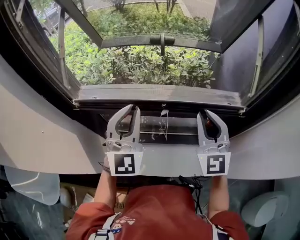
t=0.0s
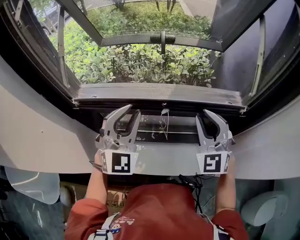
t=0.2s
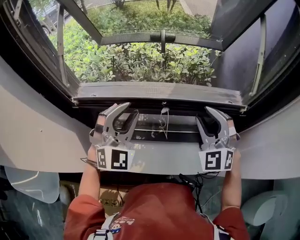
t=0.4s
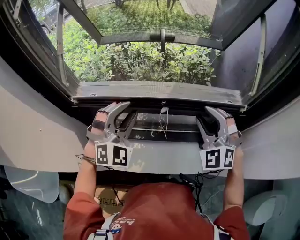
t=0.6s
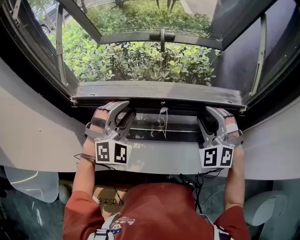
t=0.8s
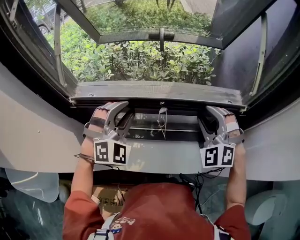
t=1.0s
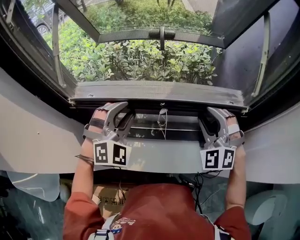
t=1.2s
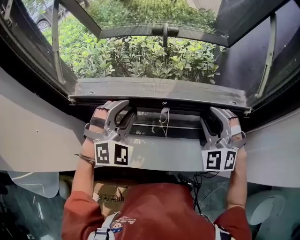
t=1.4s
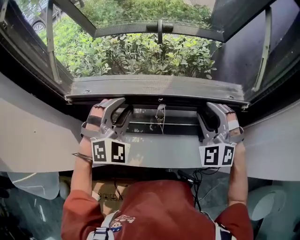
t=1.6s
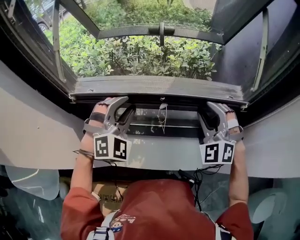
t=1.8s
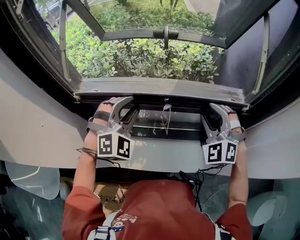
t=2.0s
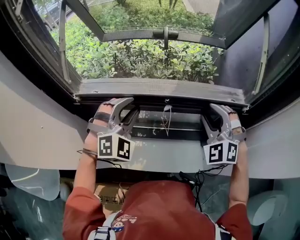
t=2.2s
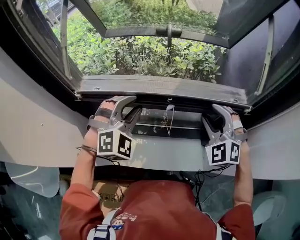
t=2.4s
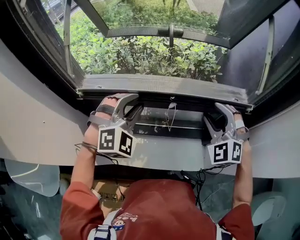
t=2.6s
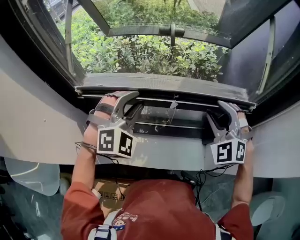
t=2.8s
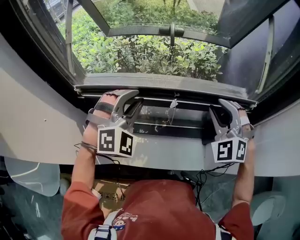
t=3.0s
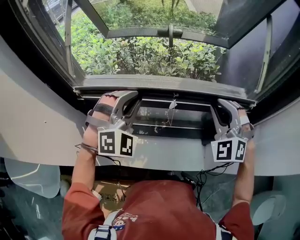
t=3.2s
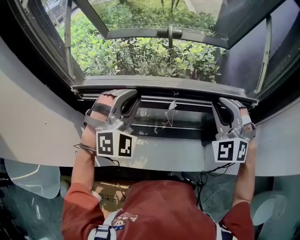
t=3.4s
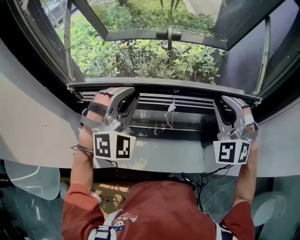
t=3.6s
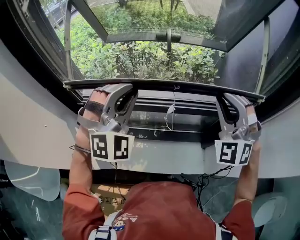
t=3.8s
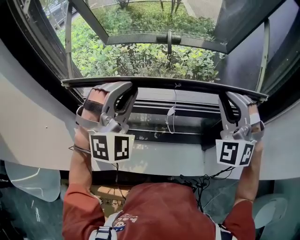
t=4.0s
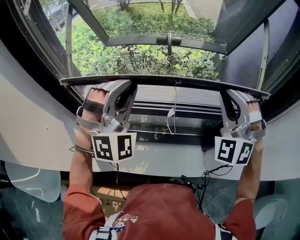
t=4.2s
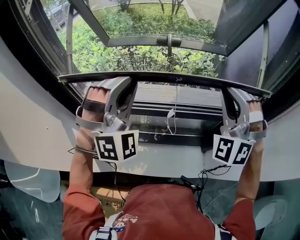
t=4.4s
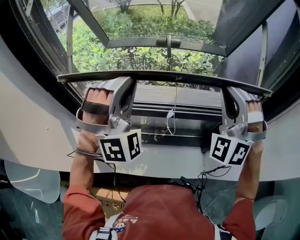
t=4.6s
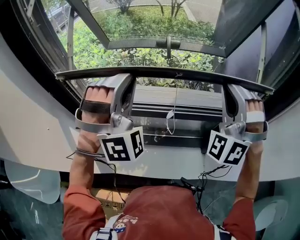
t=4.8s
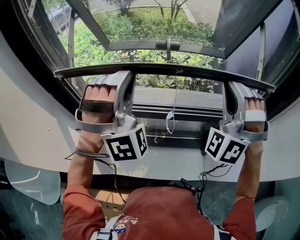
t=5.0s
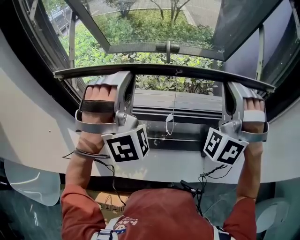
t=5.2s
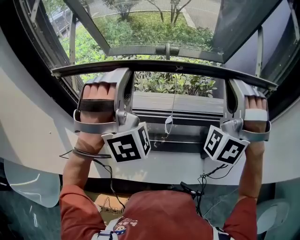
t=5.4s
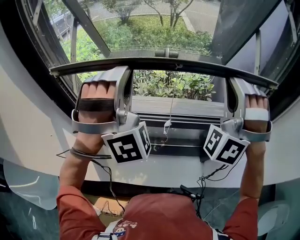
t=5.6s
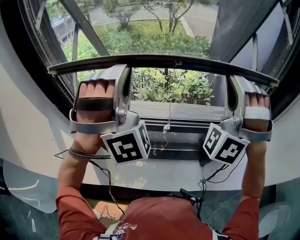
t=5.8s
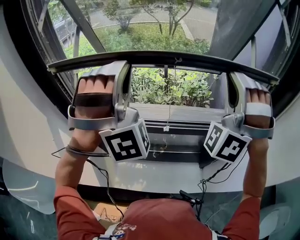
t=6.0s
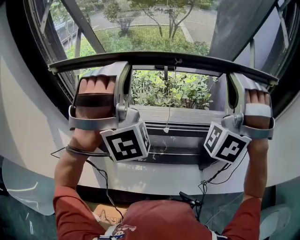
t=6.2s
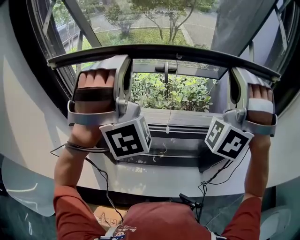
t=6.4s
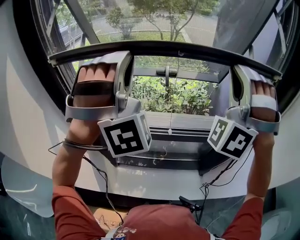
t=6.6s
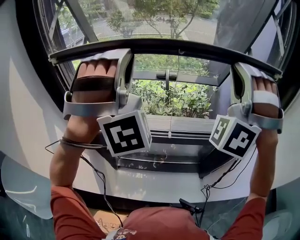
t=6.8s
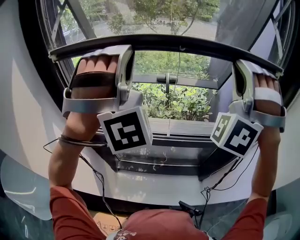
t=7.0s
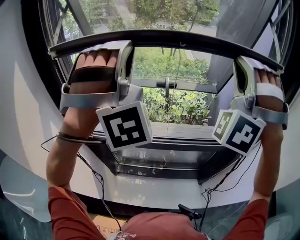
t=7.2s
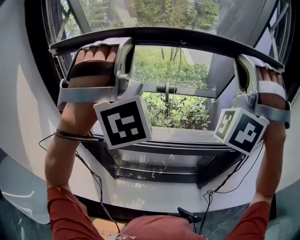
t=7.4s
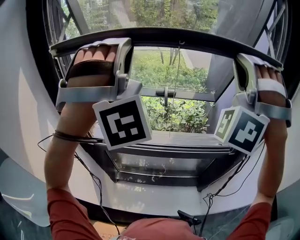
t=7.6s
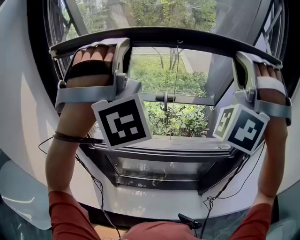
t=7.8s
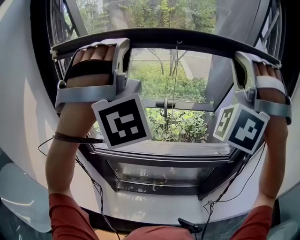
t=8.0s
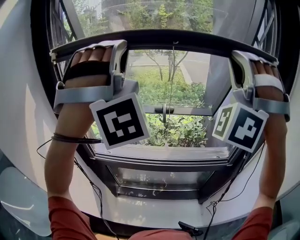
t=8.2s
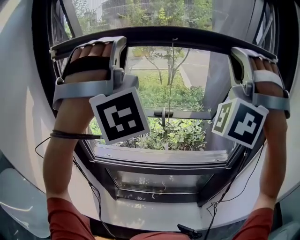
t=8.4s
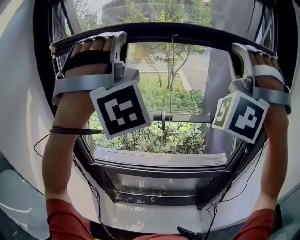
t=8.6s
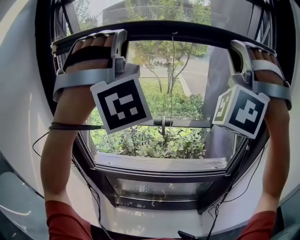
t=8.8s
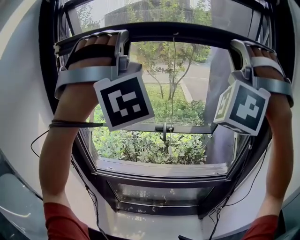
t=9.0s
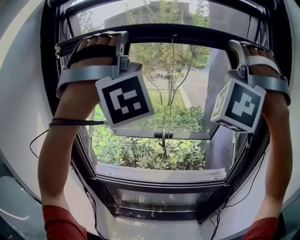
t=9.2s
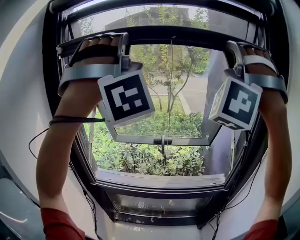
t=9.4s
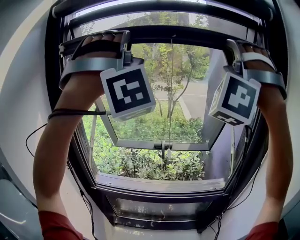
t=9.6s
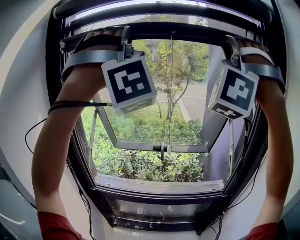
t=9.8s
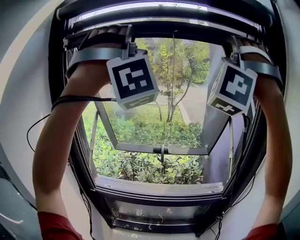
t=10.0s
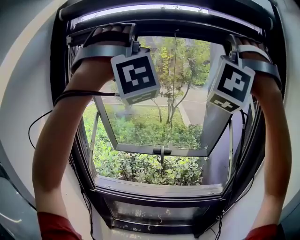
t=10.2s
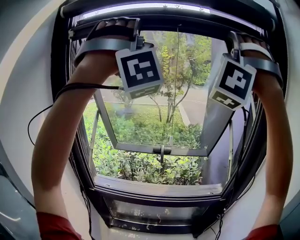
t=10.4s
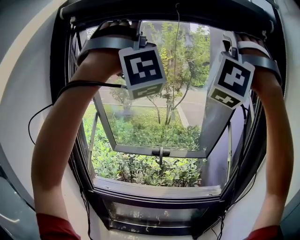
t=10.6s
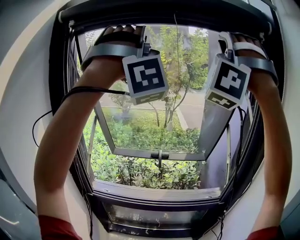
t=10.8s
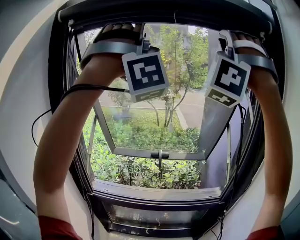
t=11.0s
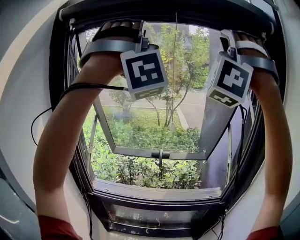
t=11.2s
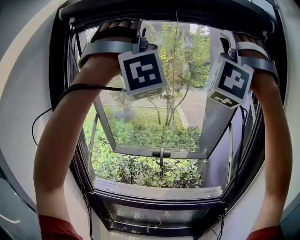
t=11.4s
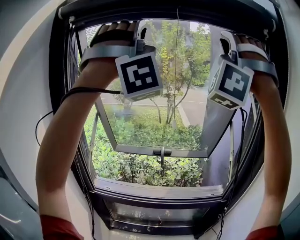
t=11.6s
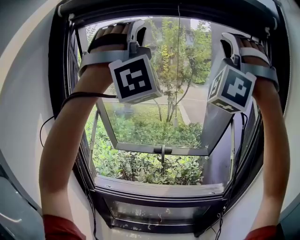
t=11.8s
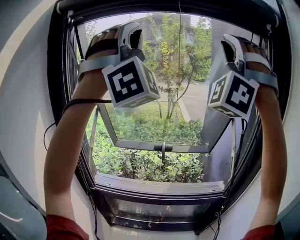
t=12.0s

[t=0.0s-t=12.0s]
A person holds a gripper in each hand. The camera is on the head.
t=0.0s to t=1.6s: Both grippers move downward, approximately 5 cm. The right gripper turns by about 40 degrees, and opens. The left gripper rotates some 40 degrees, and opens.
t=1.6s to t=3.0s: The grippers move only a little.
t=3.0s to t=4.4s: Both grippers travel together upward, roughly 10 cm. The left gripper changes its angle by approximately 20 degrees; the right gripper swivels approximately 20 degrees, and closes.
t=4.4s to t=6.0s: The grippers both shift upward by approximately 10 cm. The left gripper swivels about 30 degrees. Meanwhile the right gripper rotates about 30 degrees.
t=6.0s to t=7.6s: Both grippers move upward, some 15 cm.
t=7.6s to t=9.0s: Both grippers move upward, approximately 15 cm.
t=9.0s to t=10.4s: Both grippers move upward, about 10 cm.
t=10.4s to t=12.0s: The left gripper changes its angle by approximately 30 degrees.

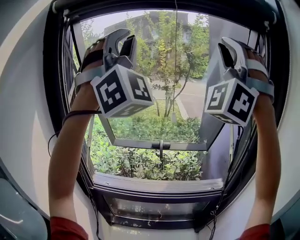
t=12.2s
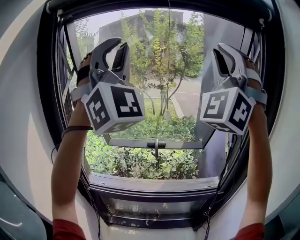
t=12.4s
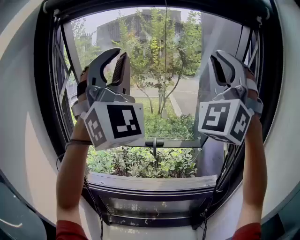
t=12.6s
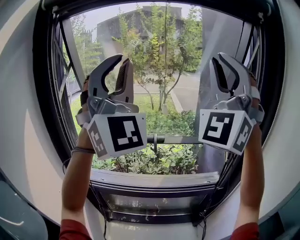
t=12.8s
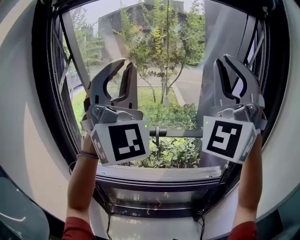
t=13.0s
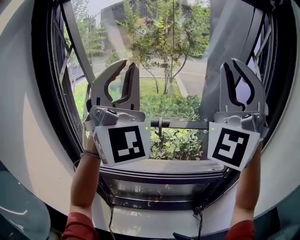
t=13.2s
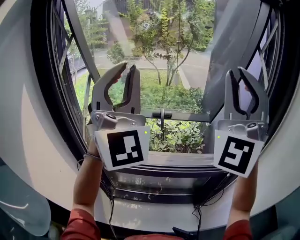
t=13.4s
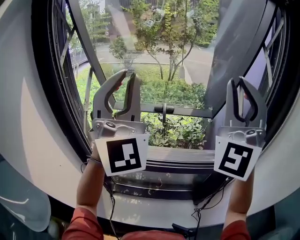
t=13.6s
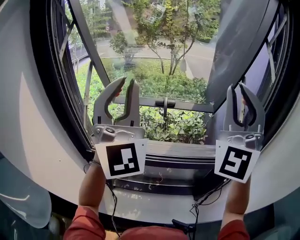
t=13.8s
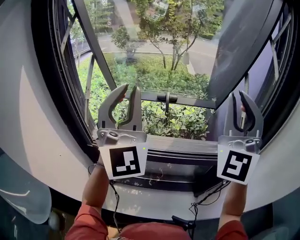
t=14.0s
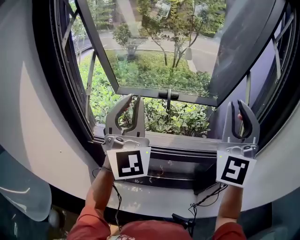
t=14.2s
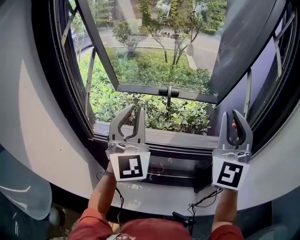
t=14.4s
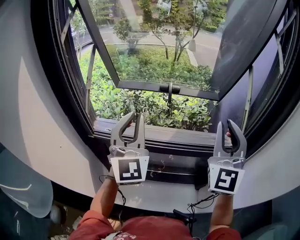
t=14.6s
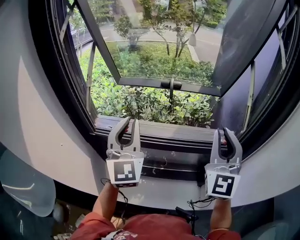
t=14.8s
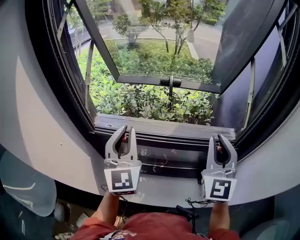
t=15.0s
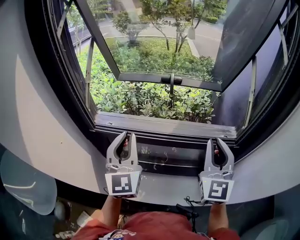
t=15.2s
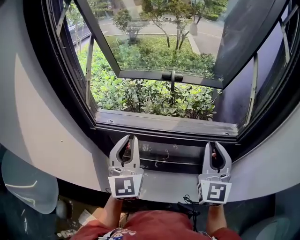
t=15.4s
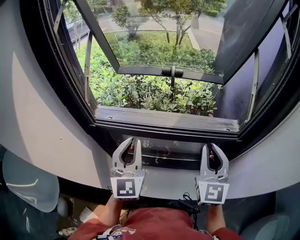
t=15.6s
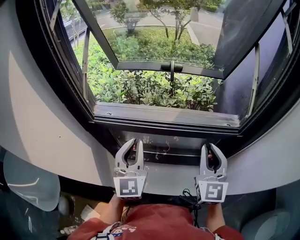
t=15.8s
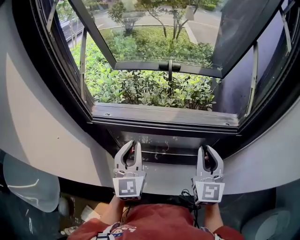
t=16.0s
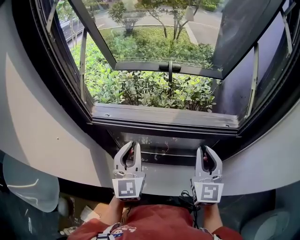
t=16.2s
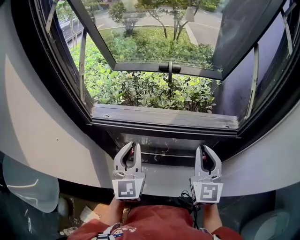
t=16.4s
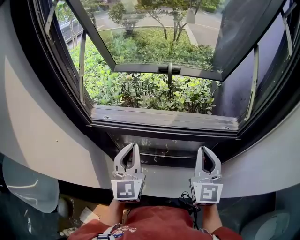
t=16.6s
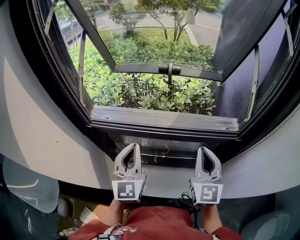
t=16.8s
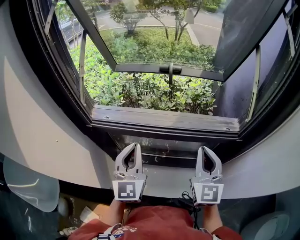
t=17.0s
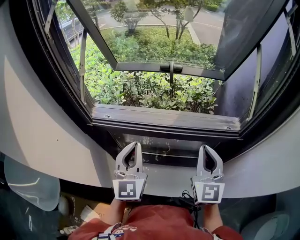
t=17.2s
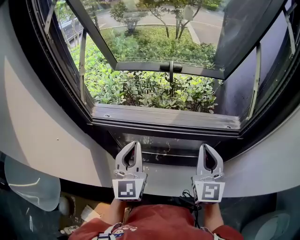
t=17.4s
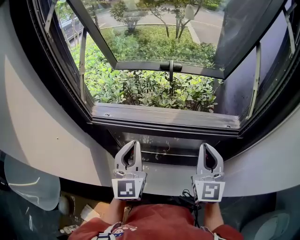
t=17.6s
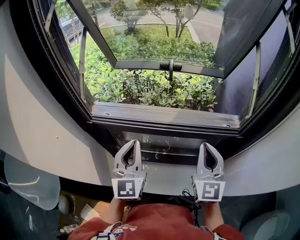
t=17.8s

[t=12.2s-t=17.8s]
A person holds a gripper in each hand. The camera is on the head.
t=12.2s to t=13.6s: Both grippers travel together downward, about 20 cm. The right gripper rotates around the line of its fingers by roughly 40 degrees, clockwise from behind. The left gripper rotates approximately 40 degrees.
t=13.6s to t=15.0s: The grippers both shift downward by about 25 cm. The left gripper swivels some 40 degrees. The right gripper rotates roughly 40 degrees.
t=15.0s to t=16.4s: The two grippers go roughly 10 cm downward.
t=16.4s to t=17.8s: Both grippers stay put.

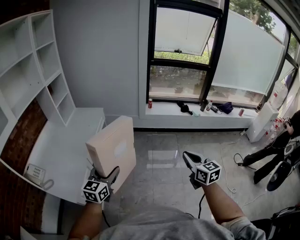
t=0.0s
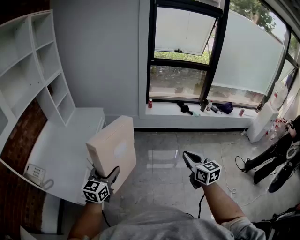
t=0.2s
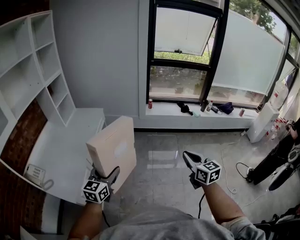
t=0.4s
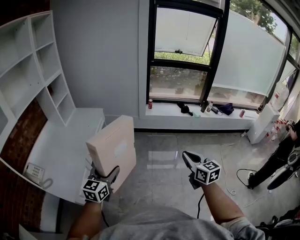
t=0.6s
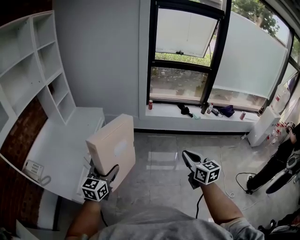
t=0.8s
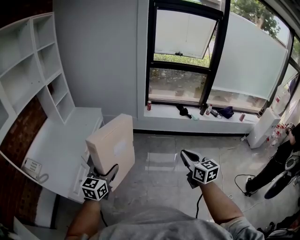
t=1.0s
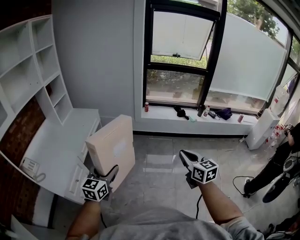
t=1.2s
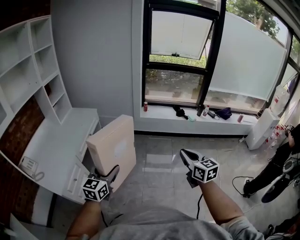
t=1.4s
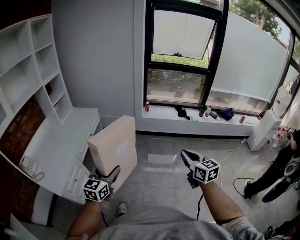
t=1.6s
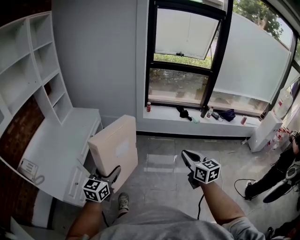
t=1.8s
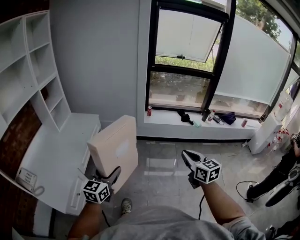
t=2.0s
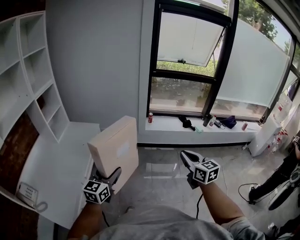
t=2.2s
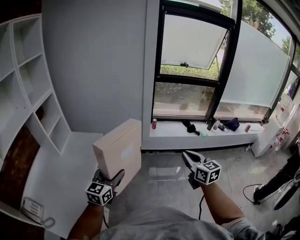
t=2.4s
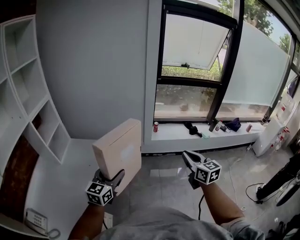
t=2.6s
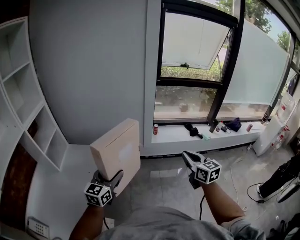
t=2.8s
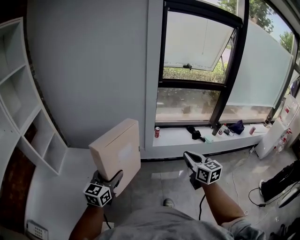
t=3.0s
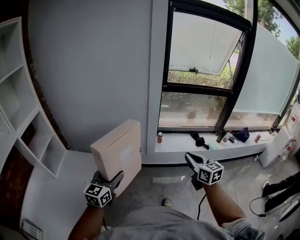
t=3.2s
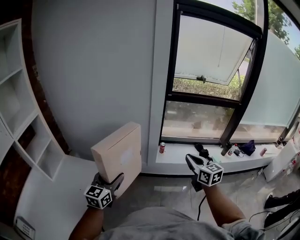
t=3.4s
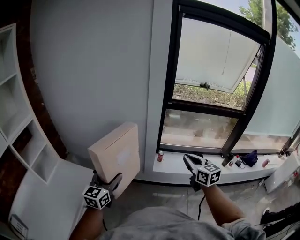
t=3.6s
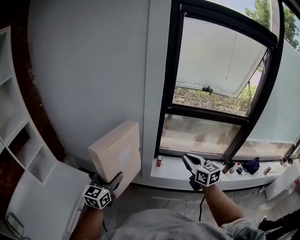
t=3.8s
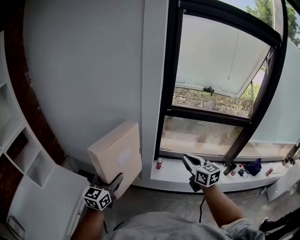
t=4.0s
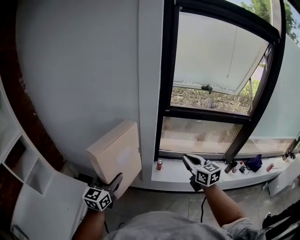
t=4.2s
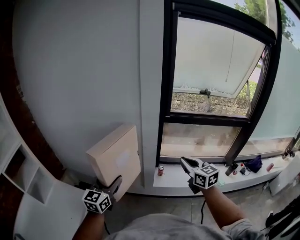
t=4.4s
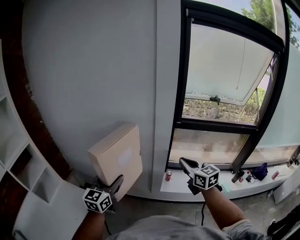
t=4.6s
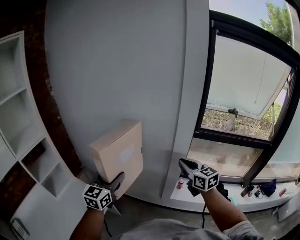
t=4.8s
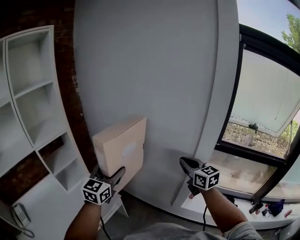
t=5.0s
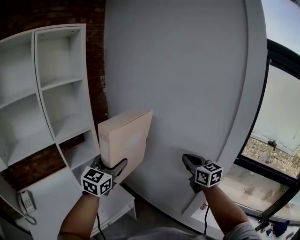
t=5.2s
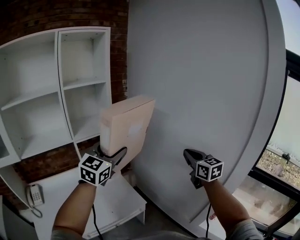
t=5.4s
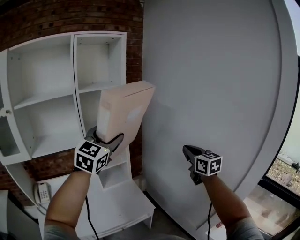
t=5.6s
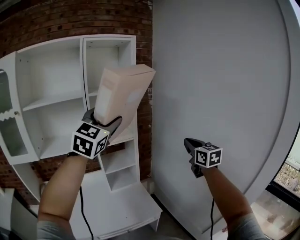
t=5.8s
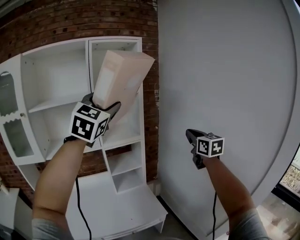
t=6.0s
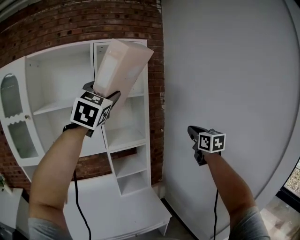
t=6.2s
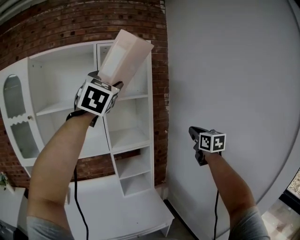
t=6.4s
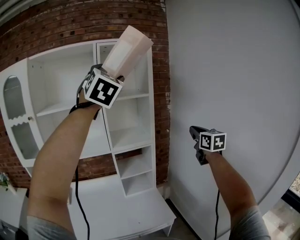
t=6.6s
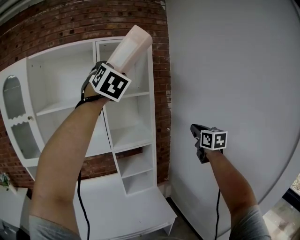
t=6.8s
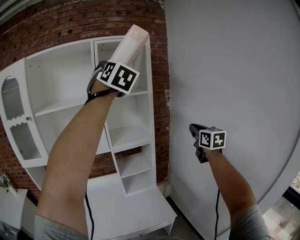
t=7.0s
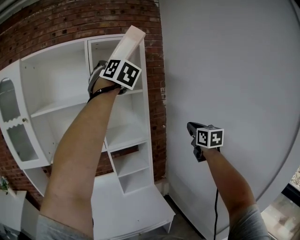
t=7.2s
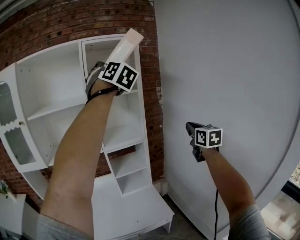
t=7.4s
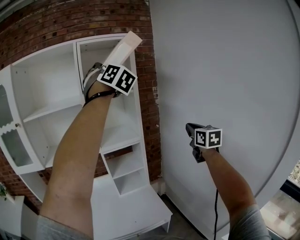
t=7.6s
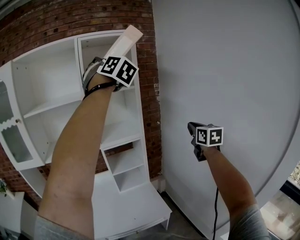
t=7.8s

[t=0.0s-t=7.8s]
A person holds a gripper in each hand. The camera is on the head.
t=0.0s to t=1.6s: Both grippers travel together to the right, approximately 10 cm.
t=1.6s to t=3.2s: The two grippers travel together, forward, some 50 cm.
t=3.2s to t=4.6s: The grippers both shift forward by approximately 30 cm.
t=4.6s to t=6.2s: The pair of grippers is taken some 50 cm. The right gripper rotates roughly 40 degrees. Meanwhile the left gripper travels upward by roughly 50 cm, and rotates some 80 degrees.
t=6.2s to t=7.8s: The left gripper is displaced forward and upward by roughly 15 cm, and turns by some 40 degrees. The right gripper changes place by approximately 5 cm.
